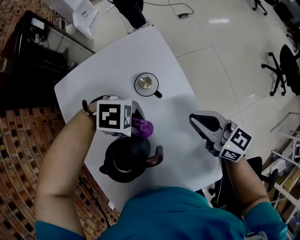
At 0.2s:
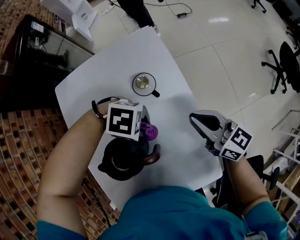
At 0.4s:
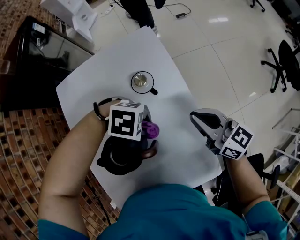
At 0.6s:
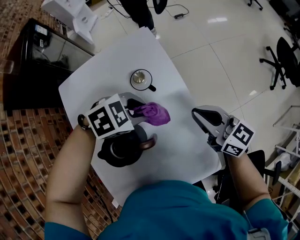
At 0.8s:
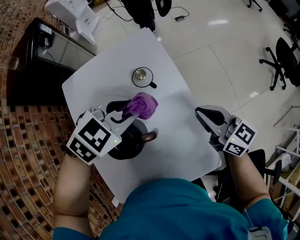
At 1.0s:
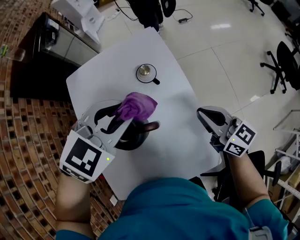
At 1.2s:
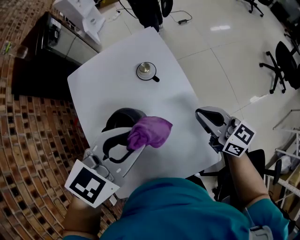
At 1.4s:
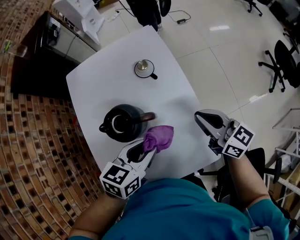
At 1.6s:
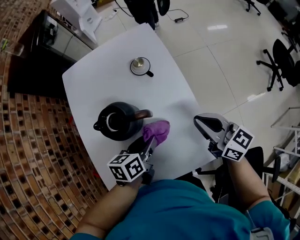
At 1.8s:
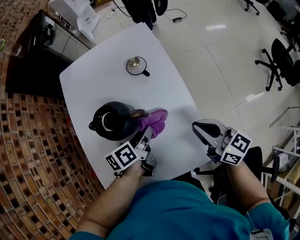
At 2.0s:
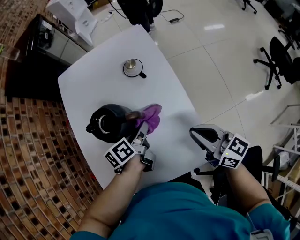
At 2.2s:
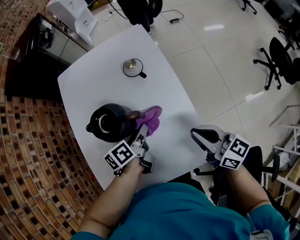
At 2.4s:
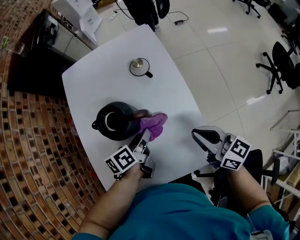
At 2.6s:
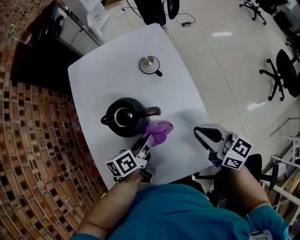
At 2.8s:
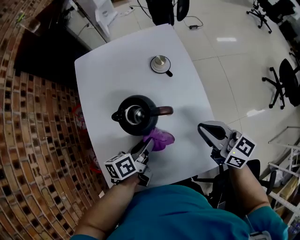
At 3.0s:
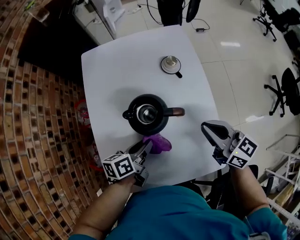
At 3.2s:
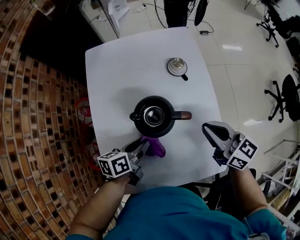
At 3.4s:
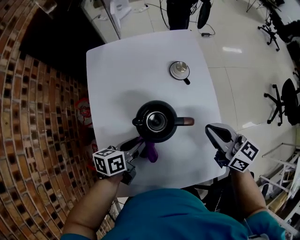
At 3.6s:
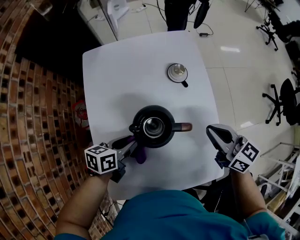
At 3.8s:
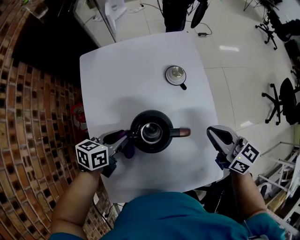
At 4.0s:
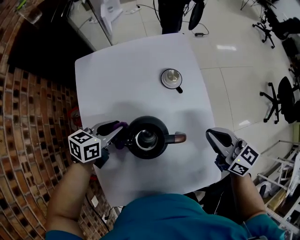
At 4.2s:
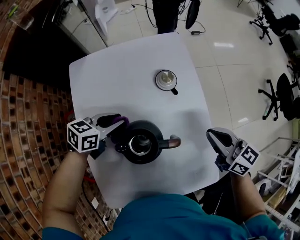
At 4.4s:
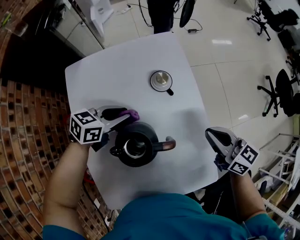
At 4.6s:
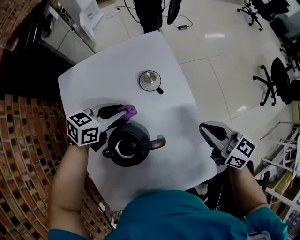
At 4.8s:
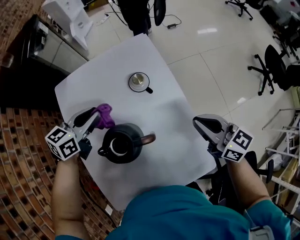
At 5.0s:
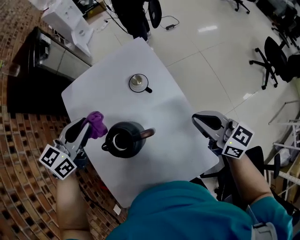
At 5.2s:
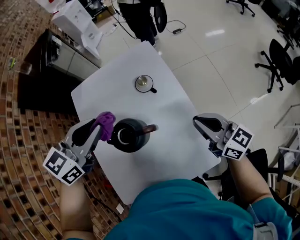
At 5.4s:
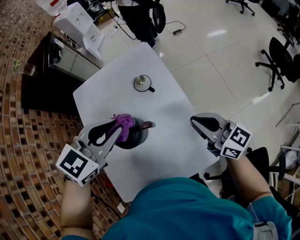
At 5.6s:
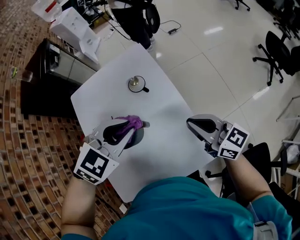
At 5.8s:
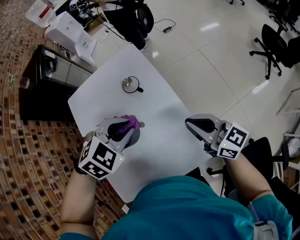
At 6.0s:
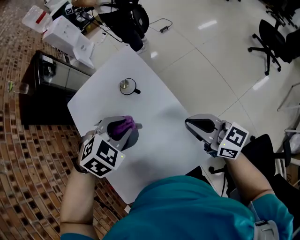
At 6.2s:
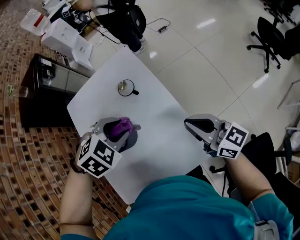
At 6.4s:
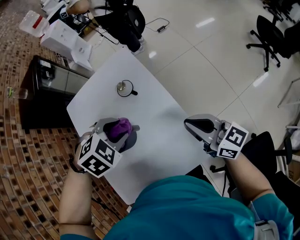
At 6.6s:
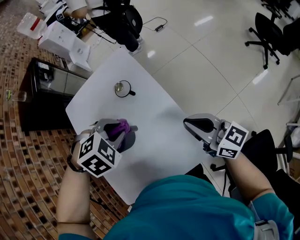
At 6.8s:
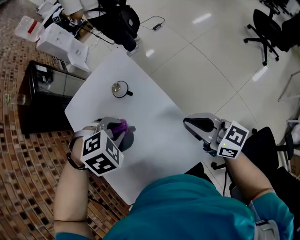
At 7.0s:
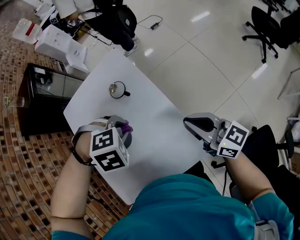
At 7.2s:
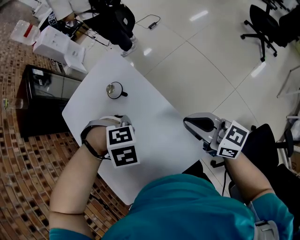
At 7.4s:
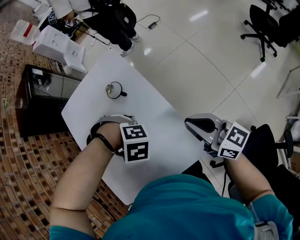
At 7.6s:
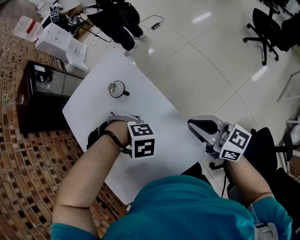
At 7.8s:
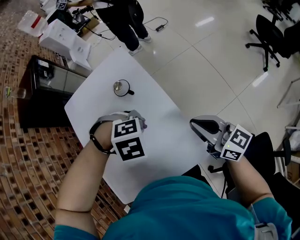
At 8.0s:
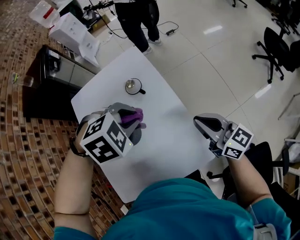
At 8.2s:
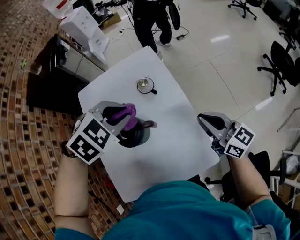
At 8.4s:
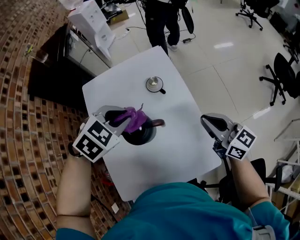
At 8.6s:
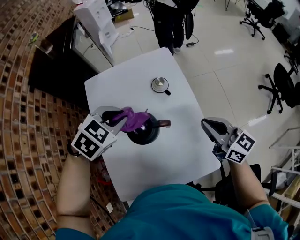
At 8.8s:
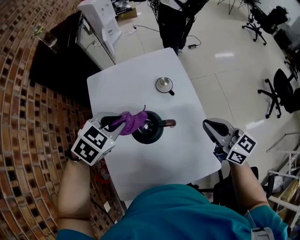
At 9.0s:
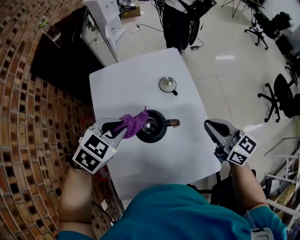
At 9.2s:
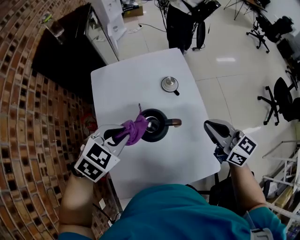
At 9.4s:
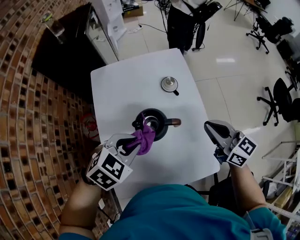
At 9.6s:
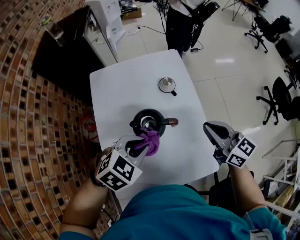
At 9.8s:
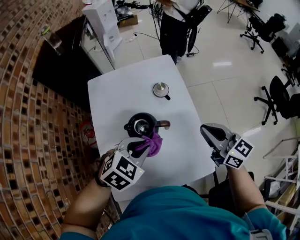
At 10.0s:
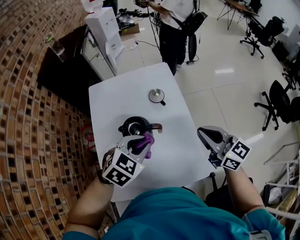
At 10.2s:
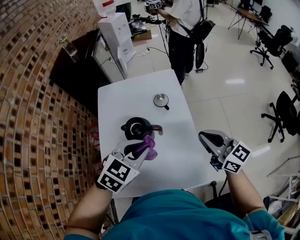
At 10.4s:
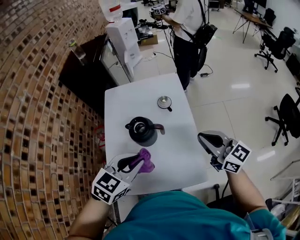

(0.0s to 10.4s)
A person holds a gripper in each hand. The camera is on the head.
0.0s - 1.4s: The right gripper moves about 10 cm. Meanwhile the left gripper ends up approximately 15 cm from where it was, and changes its angle by about 90 degrees.
1.4s - 3.0s: The right gripper travels to the left by approximately 5 cm. Meanwhile the left gripper travels downward and to the left by some 15 cm, and rotates around the line of its fingers by approximately 40 degrees, counterclockwise from behind.
3.0s - 4.4s: The right gripper travels forward by some 5 cm. The left gripper moves forward, some 20 cm, and twists some 40 degrees clockwise, seen from behind.
4.4s - 6.0s: The left gripper goes some 20 cm to the right, upward and backward, and rolls clockwise, seen from behind, by approximately 50 degrees. The right gripper travels backward, to the right and upward by some 10 cm.
6.0s - 7.4s: The left gripper travels downward by some 10 cm, and changes its angle by approximately 50 degrees. The right gripper changes place by about 5 cm.
7.4s - 9.0s: The right gripper shifts by some 15 cm, while the left gripper shifts by roughly 25 cm, and swivels some 80 degrees.
9.0s - 10.4s: The right gripper heads upward, backward and to the right, covering approximately 10 cm, while the left gripper moves backward, to the right and upward, approximately 20 cm, and turns by some 20 degrees.

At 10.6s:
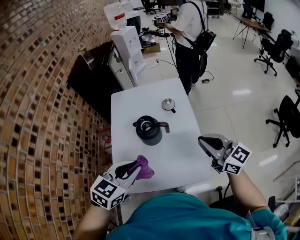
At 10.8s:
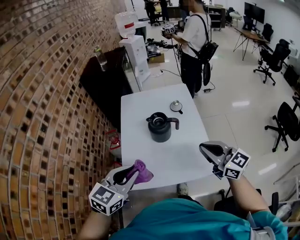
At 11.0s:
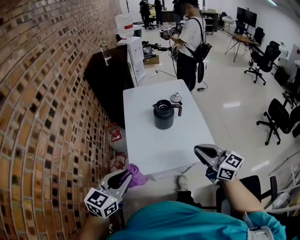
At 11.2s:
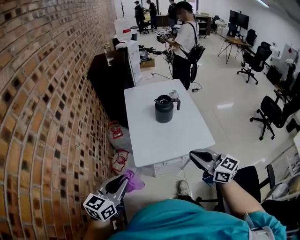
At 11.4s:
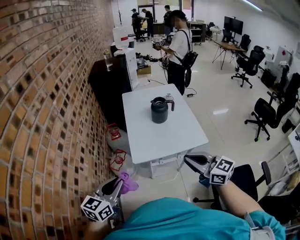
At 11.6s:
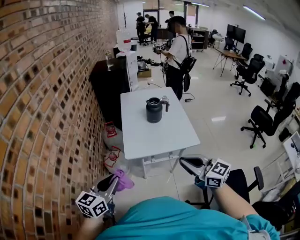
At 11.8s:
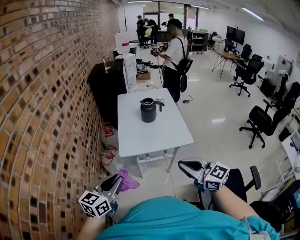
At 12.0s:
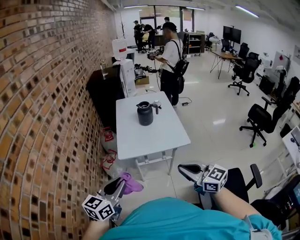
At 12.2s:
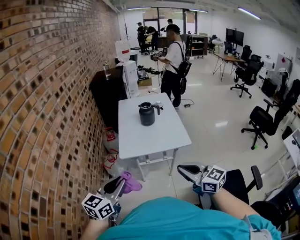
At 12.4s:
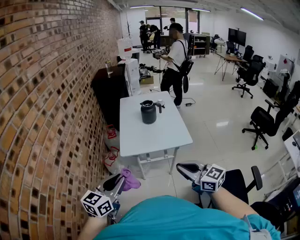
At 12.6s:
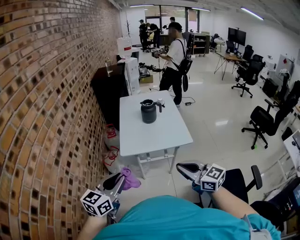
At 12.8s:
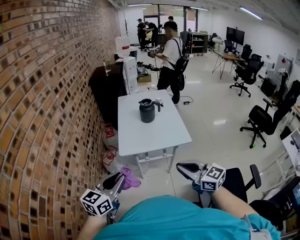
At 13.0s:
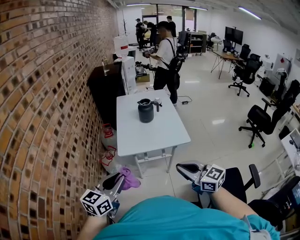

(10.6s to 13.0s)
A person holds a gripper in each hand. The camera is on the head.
10.6s - 11.8s: The pair of grippers is taken backward and to the left, roughly 50 cm. The left gripper rotates about 30 degrees.
11.8s - 13.0s: The grippers make only small movements.

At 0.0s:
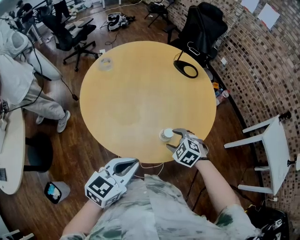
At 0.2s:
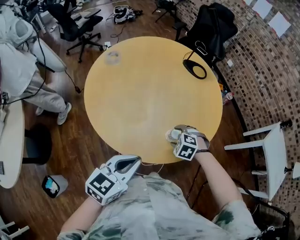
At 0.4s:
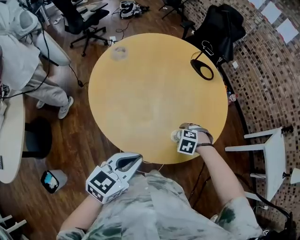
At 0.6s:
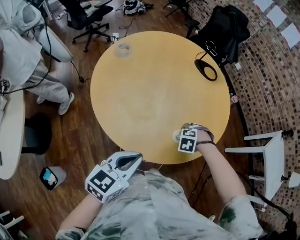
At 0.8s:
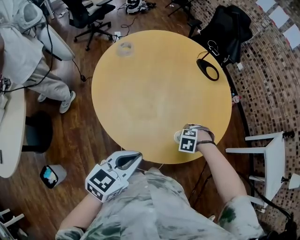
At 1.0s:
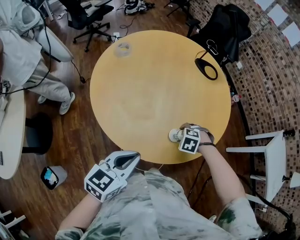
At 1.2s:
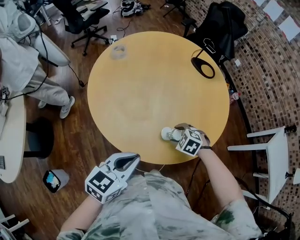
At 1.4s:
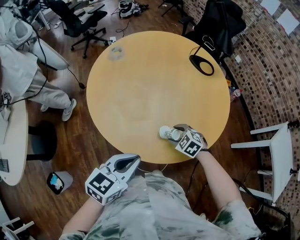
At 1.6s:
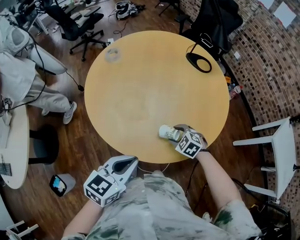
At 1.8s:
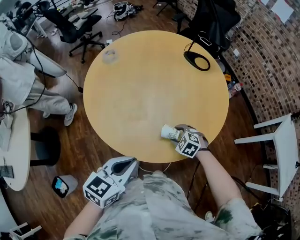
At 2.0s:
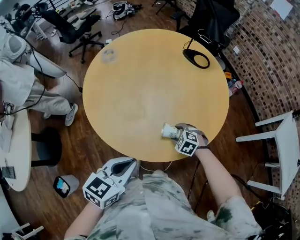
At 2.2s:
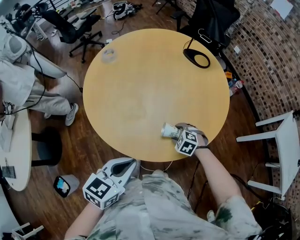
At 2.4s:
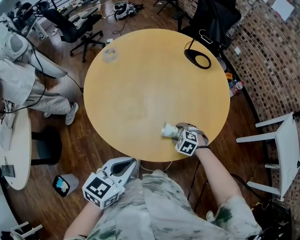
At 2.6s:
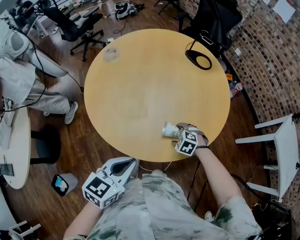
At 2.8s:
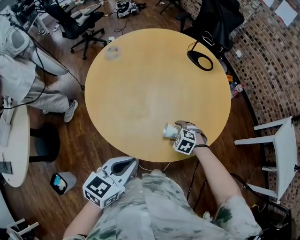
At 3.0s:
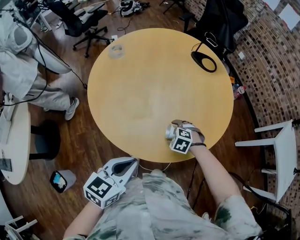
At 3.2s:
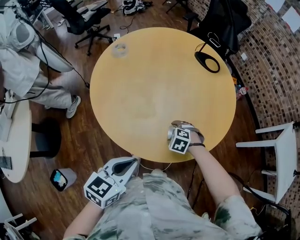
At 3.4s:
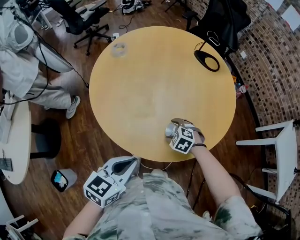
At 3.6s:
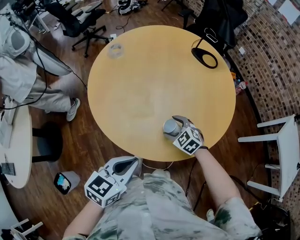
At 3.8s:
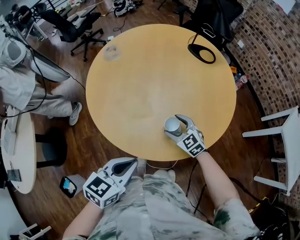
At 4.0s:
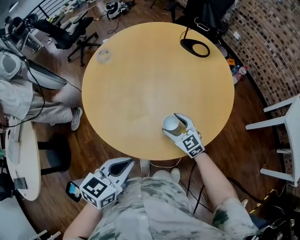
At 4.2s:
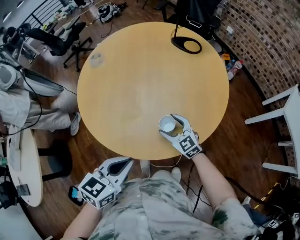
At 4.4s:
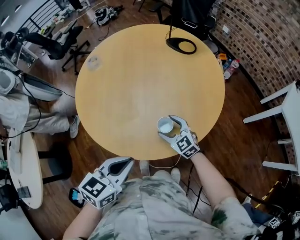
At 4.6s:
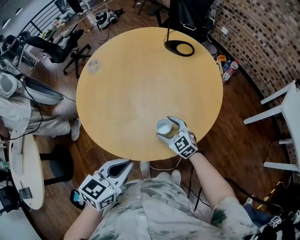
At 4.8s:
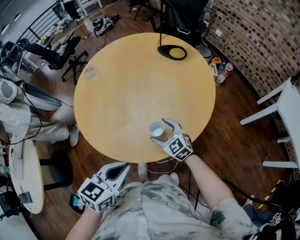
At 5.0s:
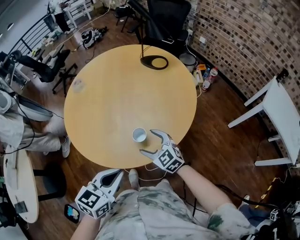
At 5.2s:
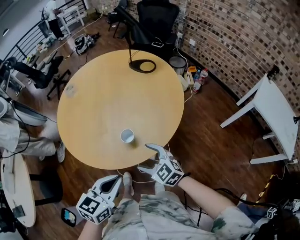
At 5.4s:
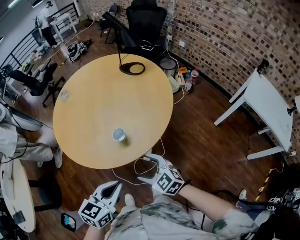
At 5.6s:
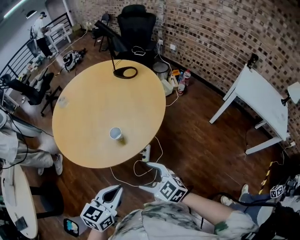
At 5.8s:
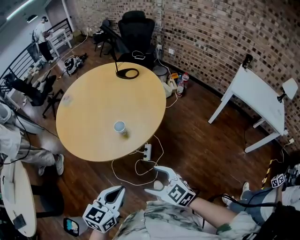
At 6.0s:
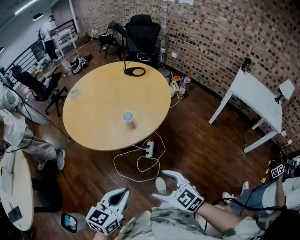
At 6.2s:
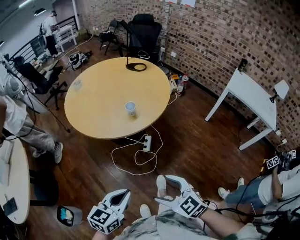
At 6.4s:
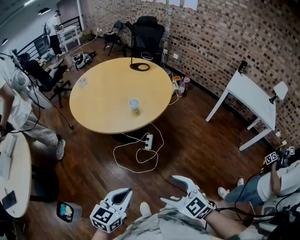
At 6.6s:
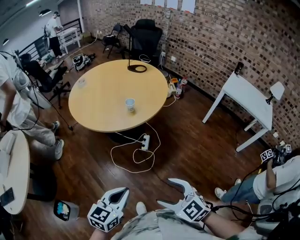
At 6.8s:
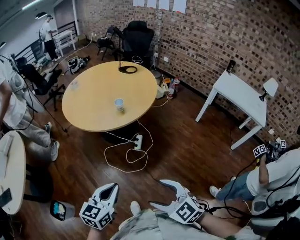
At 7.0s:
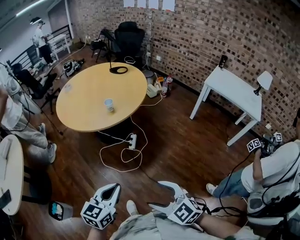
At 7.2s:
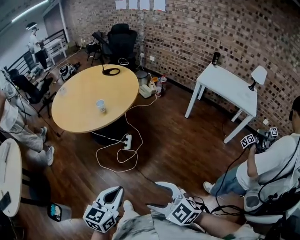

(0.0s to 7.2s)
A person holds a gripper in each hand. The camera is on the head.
0.0s - 1.4s: The right gripper shifts about 10 cm downward; the left gripper ends up some 5 cm from where it was.
2.8s - 4.4s: The right gripper angles its fingers upward, by some 40 degrees.
4.4s - 5.8s: The right gripper goes some 35 cm backward and upward. The left gripper travels backward and to the right by some 25 cm.
5.8s - 7.2s: Both grippers travel together backward, some 35 cm.

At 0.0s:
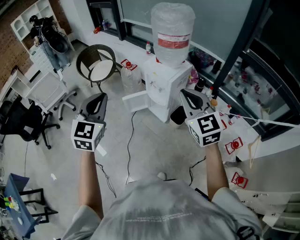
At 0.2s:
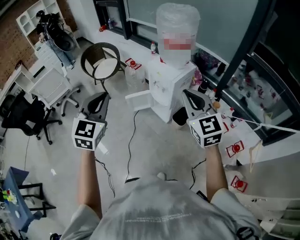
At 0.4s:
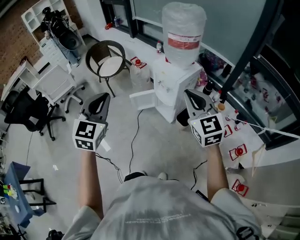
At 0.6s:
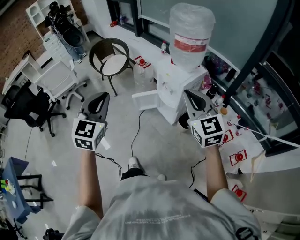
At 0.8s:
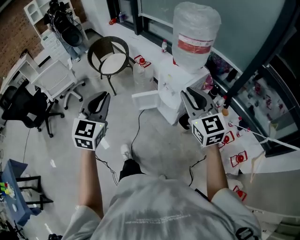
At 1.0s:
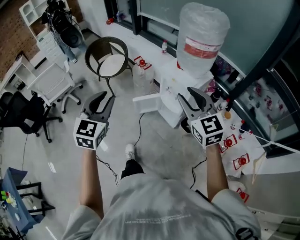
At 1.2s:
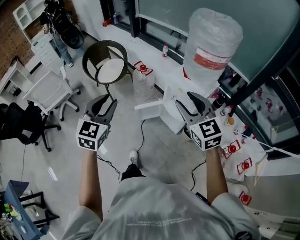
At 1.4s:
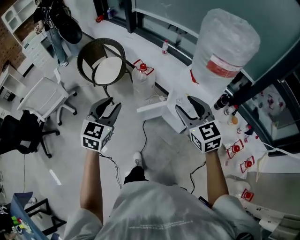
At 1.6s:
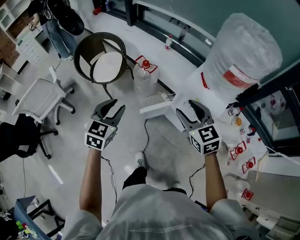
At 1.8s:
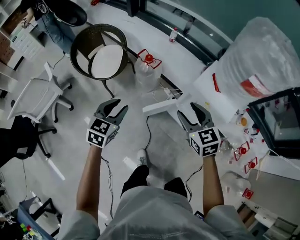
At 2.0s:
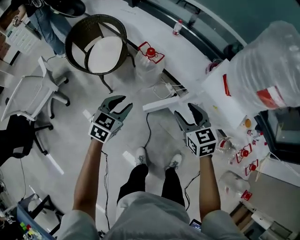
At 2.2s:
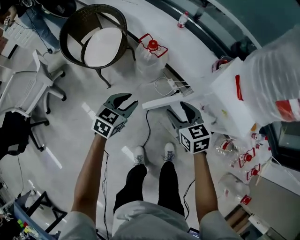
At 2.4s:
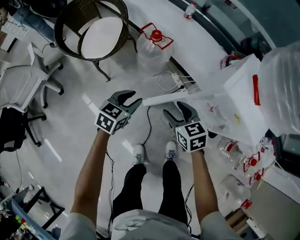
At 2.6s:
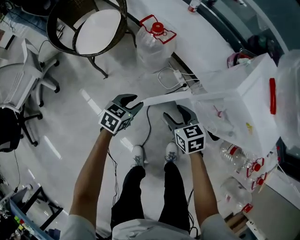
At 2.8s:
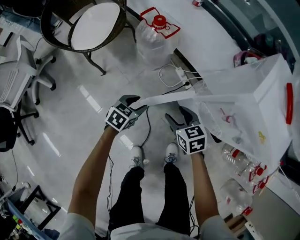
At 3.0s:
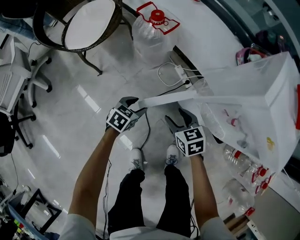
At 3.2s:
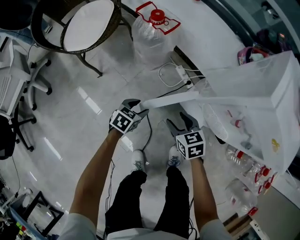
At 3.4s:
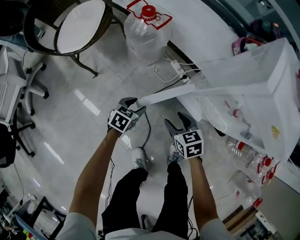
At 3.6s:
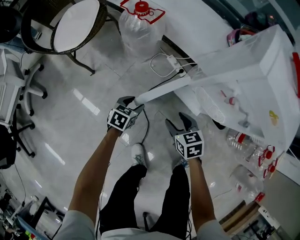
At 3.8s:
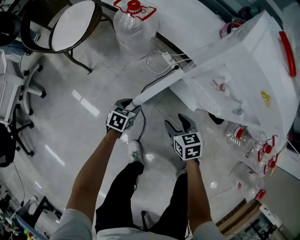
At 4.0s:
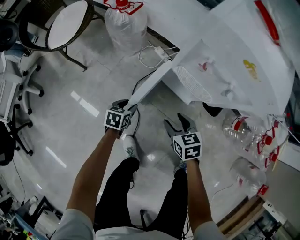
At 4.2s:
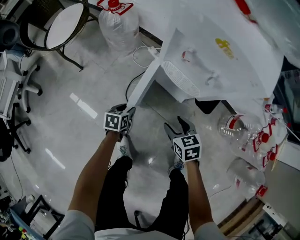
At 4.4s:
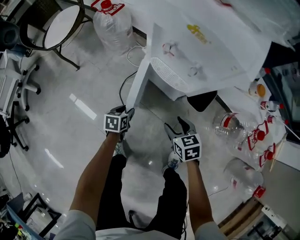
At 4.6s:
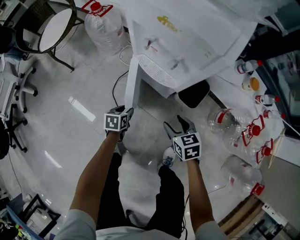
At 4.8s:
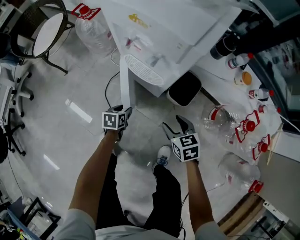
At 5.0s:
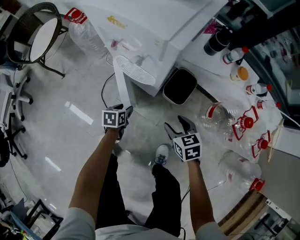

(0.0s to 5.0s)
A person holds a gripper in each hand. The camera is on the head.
0.0s - 1.6s: The pair of grippers is taken forward and to the left, some 40 cm. Both grippers move downward, some 20 cm. The left gripper changes its angle by about 20 degrees, and opens up. Meanwhile the right gripper opens its fingers.
1.6s - 3.4s: The grippers both shift downward by some 60 cm. The left gripper rotates some 40 degrees; the right gripper rotates roughly 30 degrees.
3.4s - 5.0s: Both grippers move to the right and backward, some 40 cm. The left gripper changes its angle by about 20 degrees.
